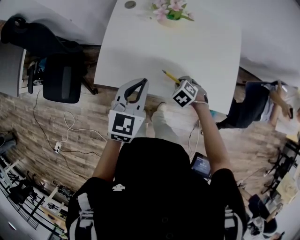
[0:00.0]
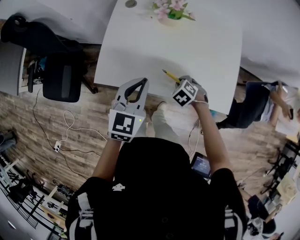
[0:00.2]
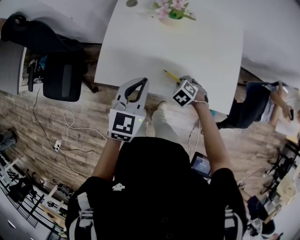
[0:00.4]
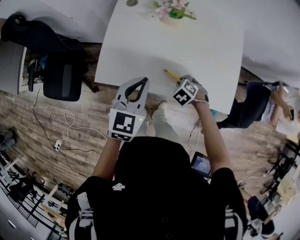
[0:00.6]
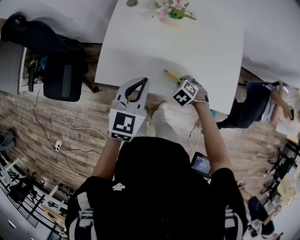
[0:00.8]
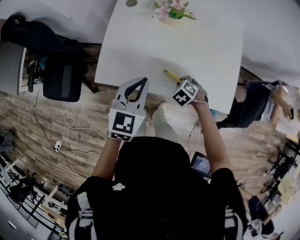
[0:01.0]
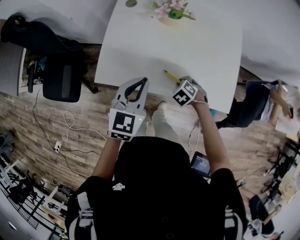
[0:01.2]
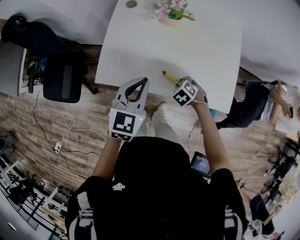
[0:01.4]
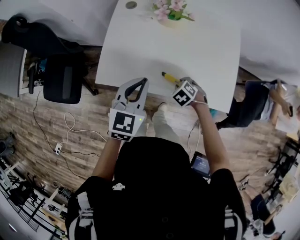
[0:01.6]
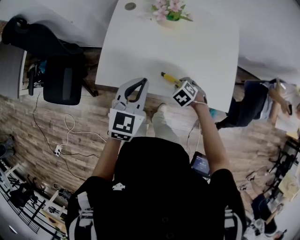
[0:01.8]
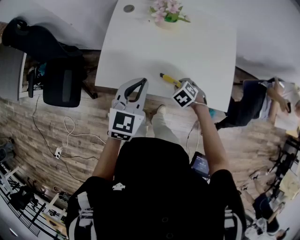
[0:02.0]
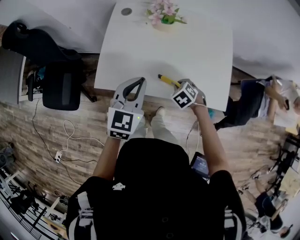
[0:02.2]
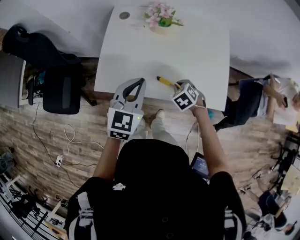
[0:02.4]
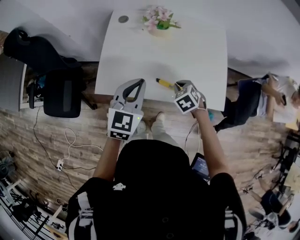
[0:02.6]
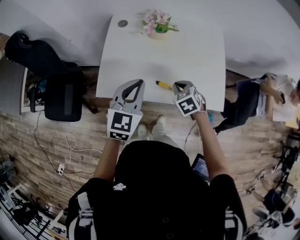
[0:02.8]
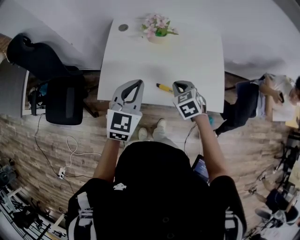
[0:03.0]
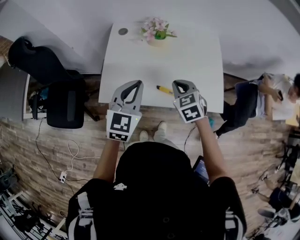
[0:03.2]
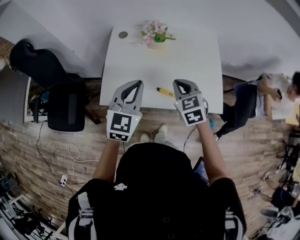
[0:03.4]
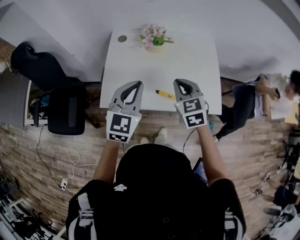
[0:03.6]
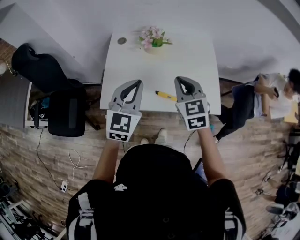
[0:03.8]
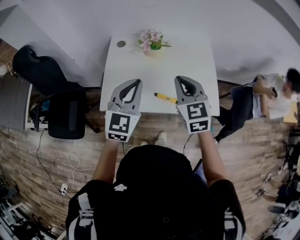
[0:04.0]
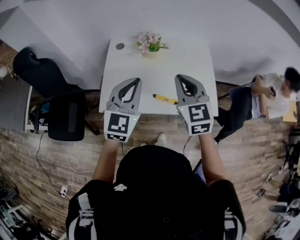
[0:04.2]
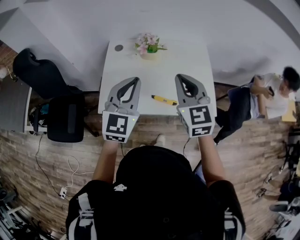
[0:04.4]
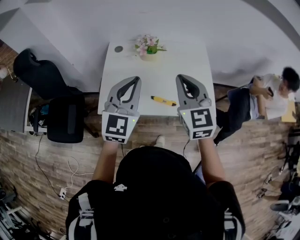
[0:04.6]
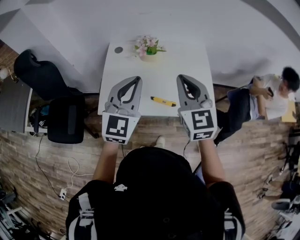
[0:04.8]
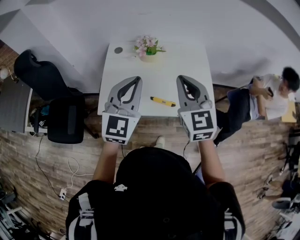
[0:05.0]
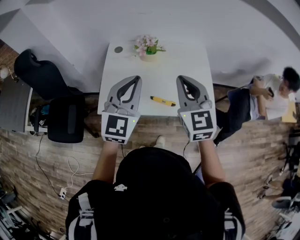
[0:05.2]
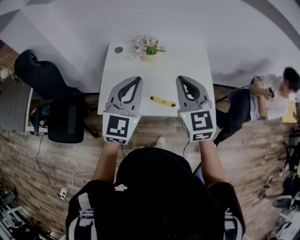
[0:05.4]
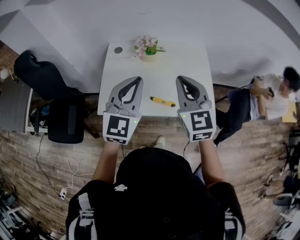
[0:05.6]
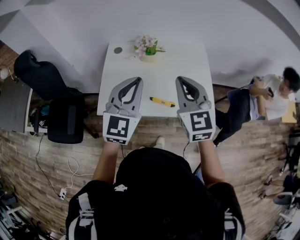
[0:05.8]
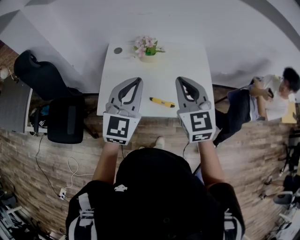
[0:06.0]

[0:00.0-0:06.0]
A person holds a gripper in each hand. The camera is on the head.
0:00.0 to 0:01.6: Both grippers stay put.
0:01.6 to 0:03.0: The right gripper moves upward, about 15 cm, turns by roughly 30 degrees, and closes up; the left gripper shifts roughly 5 cm upward.
0:03.0 to 0:04.4: The right gripper moves upward, about 25 cm, and angles its fingers upward, by about 40 degrees; the left gripper travels upward by approximately 10 cm.
0:04.4 to 0:06.0: The grippers stay close to where they were, moving slightly.

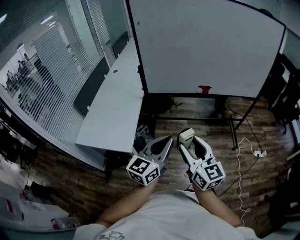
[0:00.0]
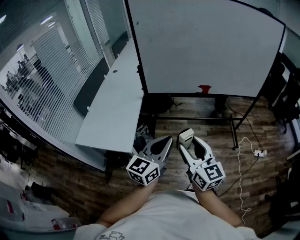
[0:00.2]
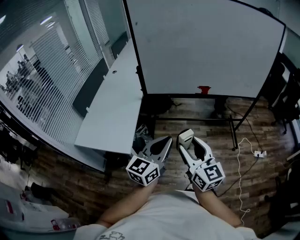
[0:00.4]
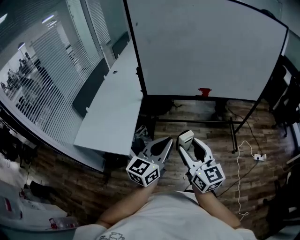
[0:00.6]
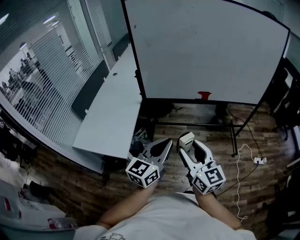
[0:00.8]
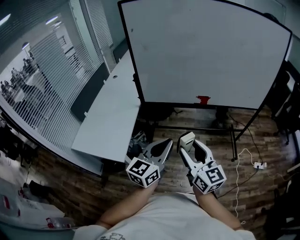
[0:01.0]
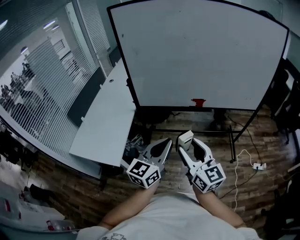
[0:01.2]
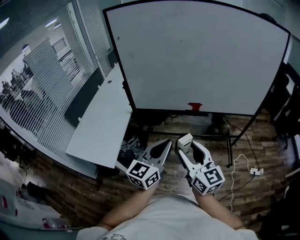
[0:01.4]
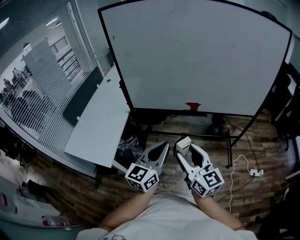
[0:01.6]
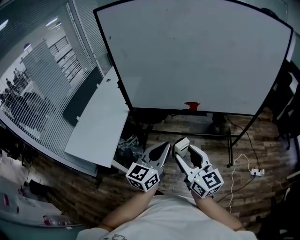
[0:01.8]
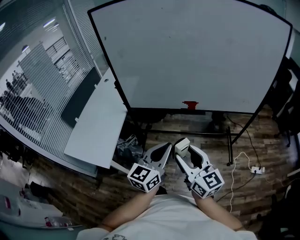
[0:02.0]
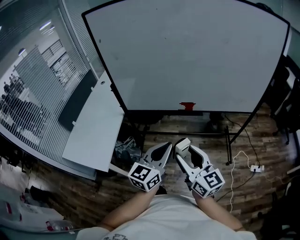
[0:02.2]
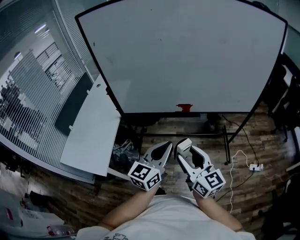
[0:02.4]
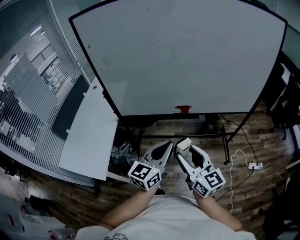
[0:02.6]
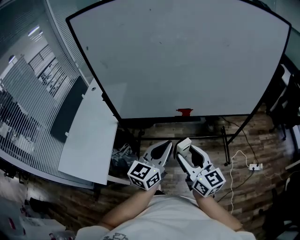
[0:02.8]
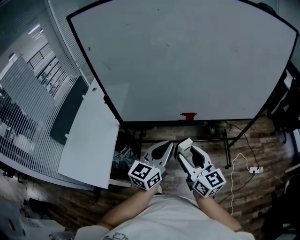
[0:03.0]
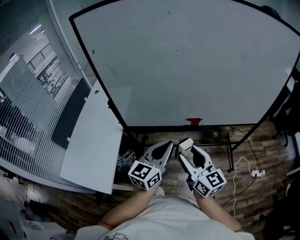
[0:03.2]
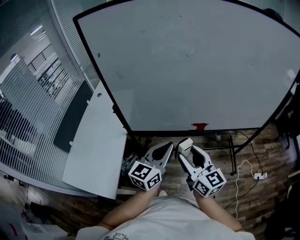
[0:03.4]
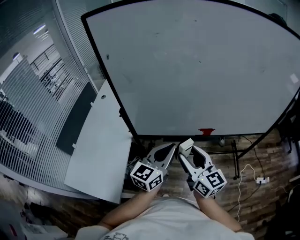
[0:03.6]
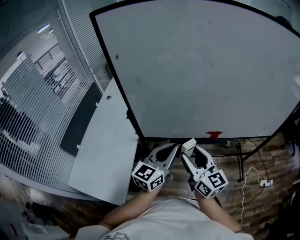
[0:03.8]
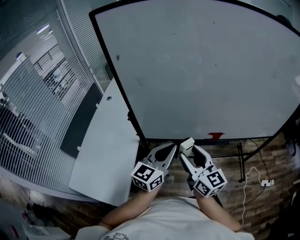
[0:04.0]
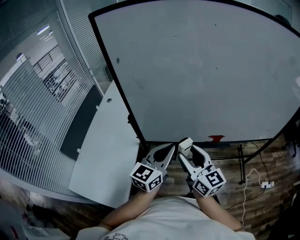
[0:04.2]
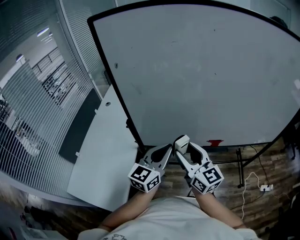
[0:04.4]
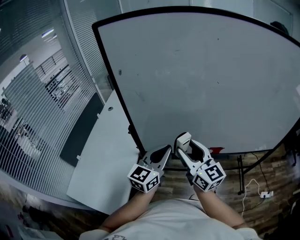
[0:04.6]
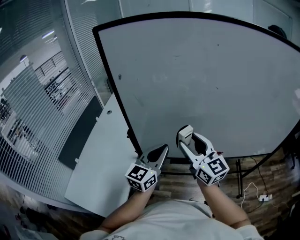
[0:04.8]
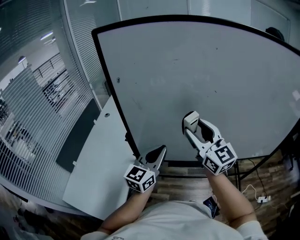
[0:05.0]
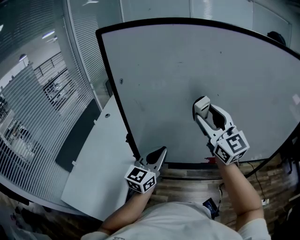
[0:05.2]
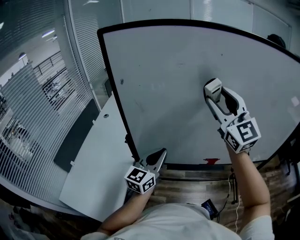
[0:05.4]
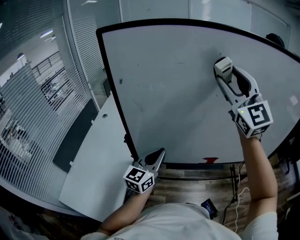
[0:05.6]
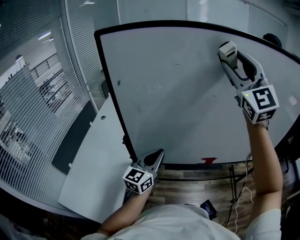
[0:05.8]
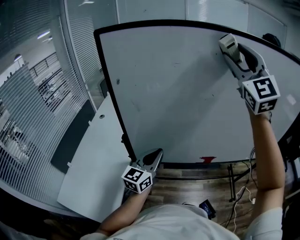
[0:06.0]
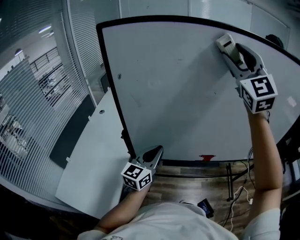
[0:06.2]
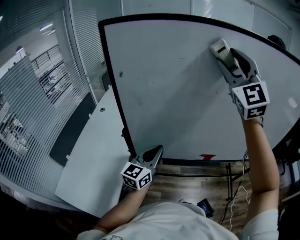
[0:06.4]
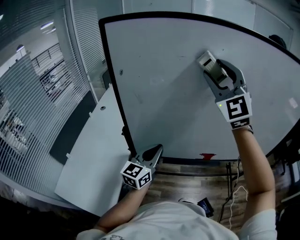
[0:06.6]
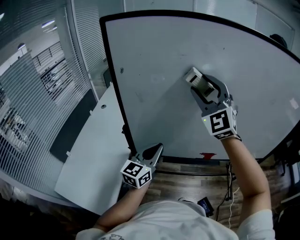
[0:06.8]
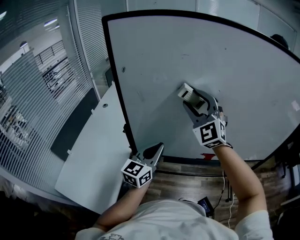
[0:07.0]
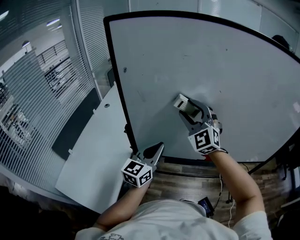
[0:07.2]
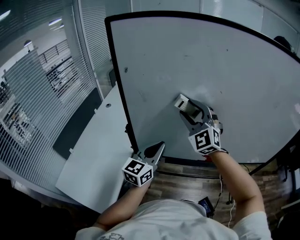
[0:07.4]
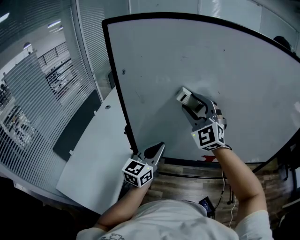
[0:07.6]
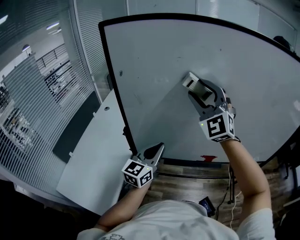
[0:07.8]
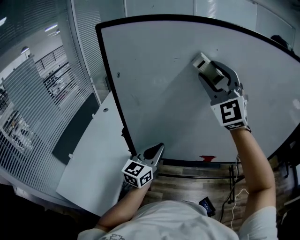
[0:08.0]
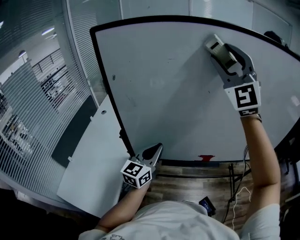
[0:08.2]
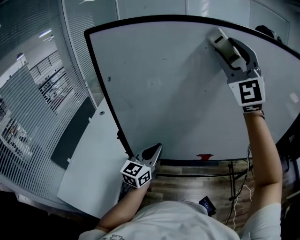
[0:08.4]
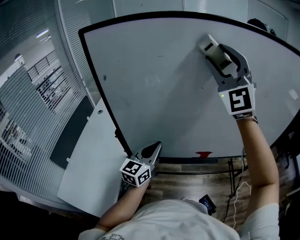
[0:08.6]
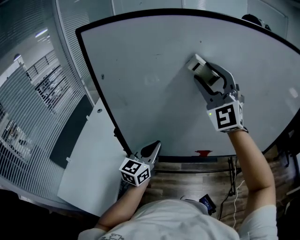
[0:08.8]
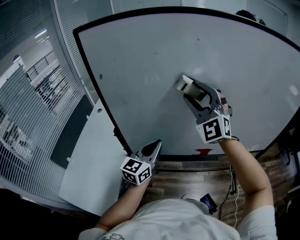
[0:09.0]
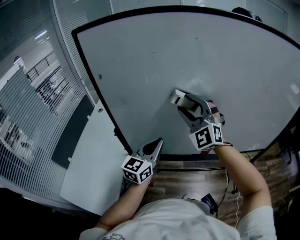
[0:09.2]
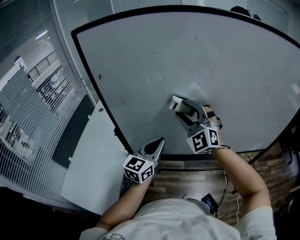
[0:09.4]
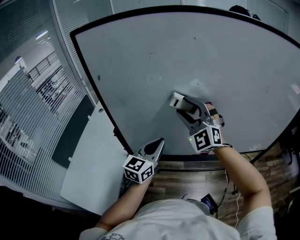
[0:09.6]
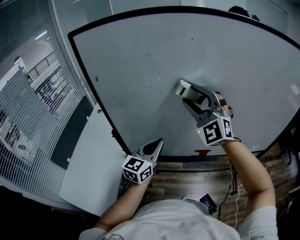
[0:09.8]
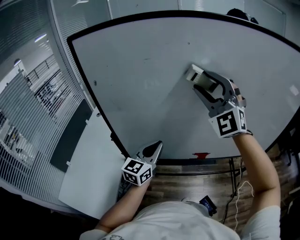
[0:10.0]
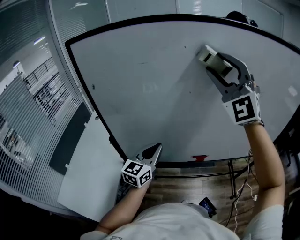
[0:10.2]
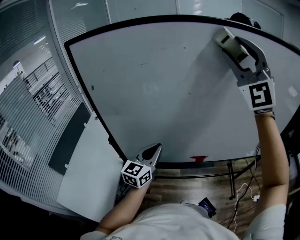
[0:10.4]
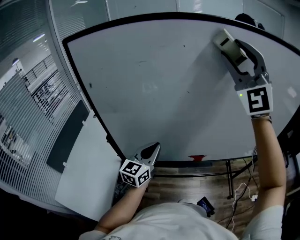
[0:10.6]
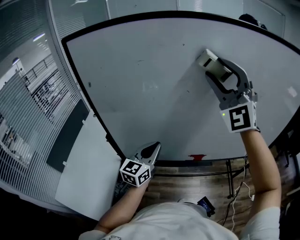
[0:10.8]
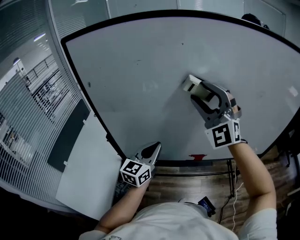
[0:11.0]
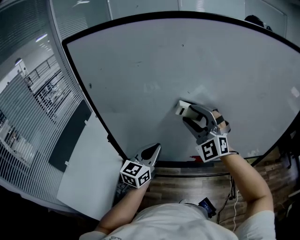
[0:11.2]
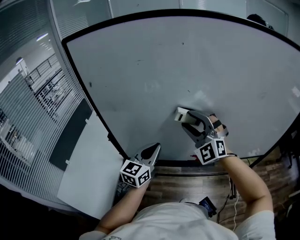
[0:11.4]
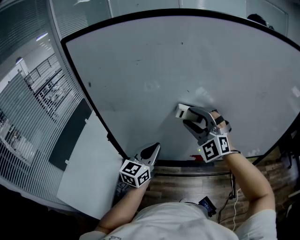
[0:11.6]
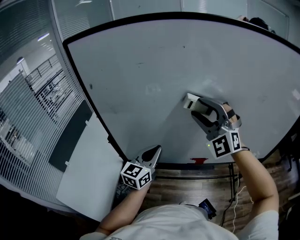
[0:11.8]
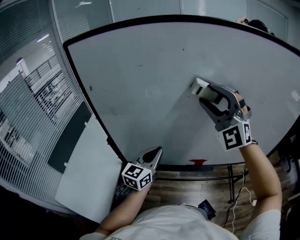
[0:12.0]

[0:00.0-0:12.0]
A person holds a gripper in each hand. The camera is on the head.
0:00.0 to 0:01.6: Both grippers travel together to the right and forward, about 20 cm.
0:01.6 to 0:03.0: The grippers both shift forward by roughly 15 cm.
0:03.0 to 0:04.4: Both grippers move to the left and forward, roughly 25 cm.
0:04.4 to 0:06.0: The left gripper shifts some 5 cm forward. Meanwhile the right gripper shifts about 40 cm upward, and rolls counterclockwise, seen from behind, by roughly 60 degrees.
0:06.0 to 0:07.6: The right gripper travels downward and to the left by approximately 25 cm.
0:07.6 to 0:09.0: The right gripper is displaced to the right by roughly 10 cm, and moves roughly 25 cm upward and comes back.
0:09.0 to 0:10.4: The right gripper is displaced upward and to the right by roughly 25 cm.
0:10.4 to 0:12.0: The right gripper goes roughly 15 cm downward.

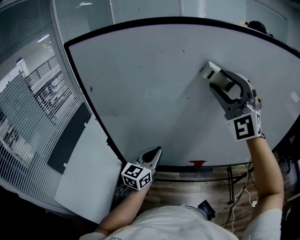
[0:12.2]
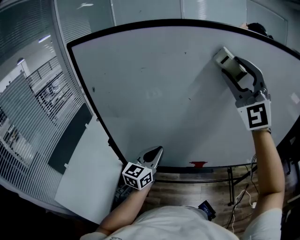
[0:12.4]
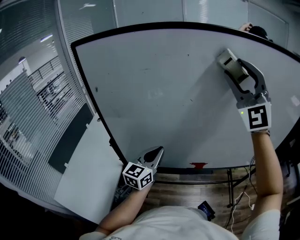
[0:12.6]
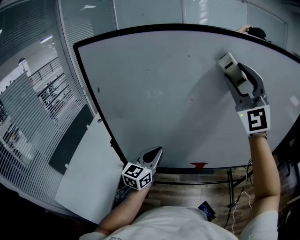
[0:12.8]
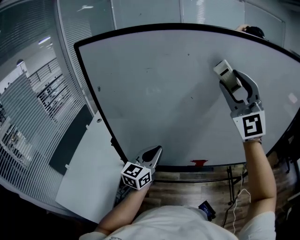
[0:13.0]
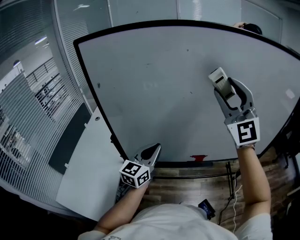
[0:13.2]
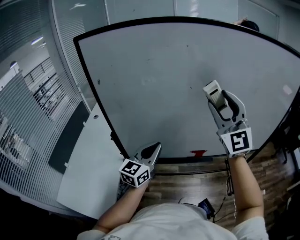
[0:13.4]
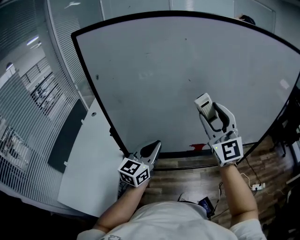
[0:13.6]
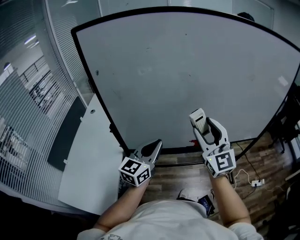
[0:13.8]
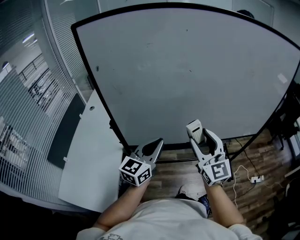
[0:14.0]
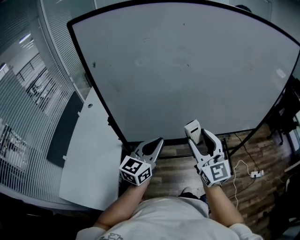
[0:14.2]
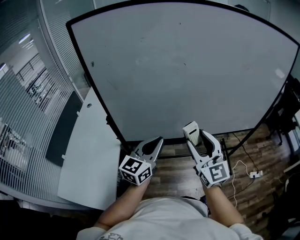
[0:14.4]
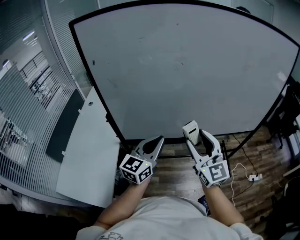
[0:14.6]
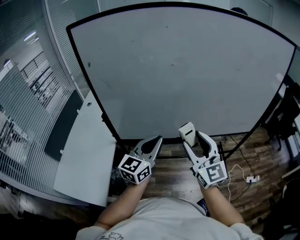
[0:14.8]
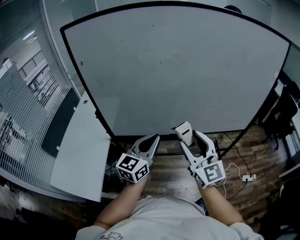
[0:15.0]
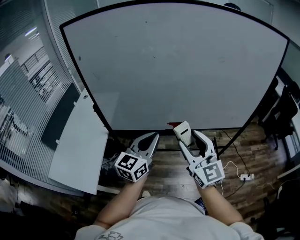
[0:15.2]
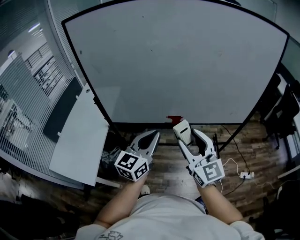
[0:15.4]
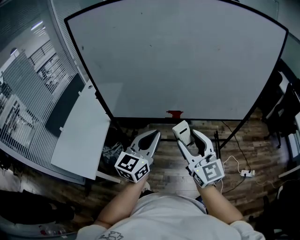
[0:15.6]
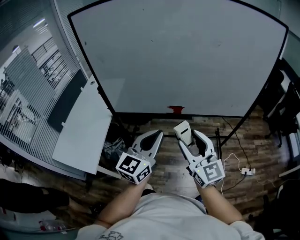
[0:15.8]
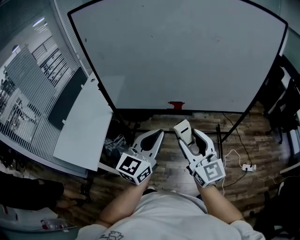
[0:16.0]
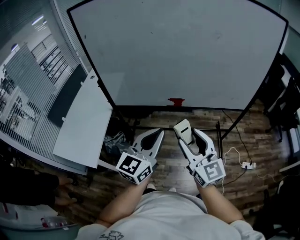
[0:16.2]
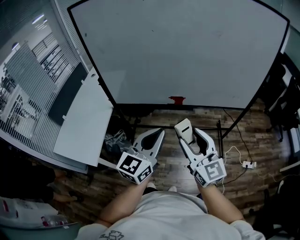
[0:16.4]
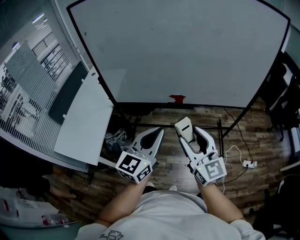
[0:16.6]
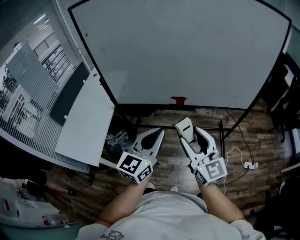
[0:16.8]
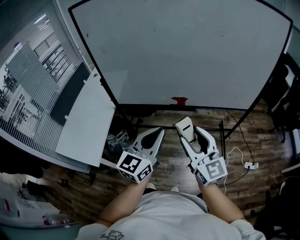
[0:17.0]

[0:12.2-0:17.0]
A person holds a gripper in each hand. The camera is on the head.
0:12.2 to 0:13.8: The left gripper goes roughly 10 cm backward. The right gripper heads downward and backward, covering some 25 cm, and twists roughly 50 degrees clockwise, seen from behind.
0:13.8 to 0:15.4: The right gripper shifts about 20 cm backward and to the right, while the left gripper travels to the right and backward by approximately 20 cm.
0:15.4 to 0:17.0: Both grippers move backward, roughly 10 cm.

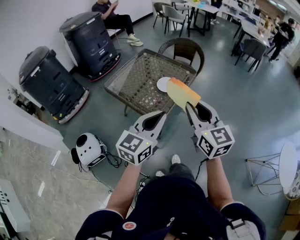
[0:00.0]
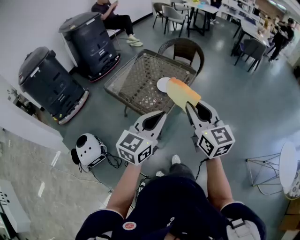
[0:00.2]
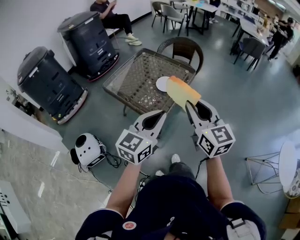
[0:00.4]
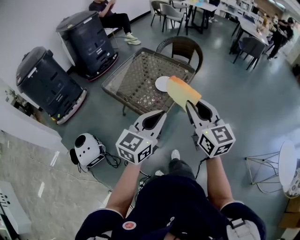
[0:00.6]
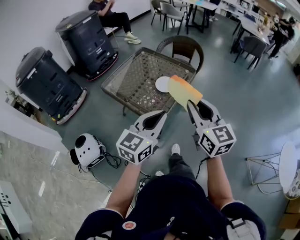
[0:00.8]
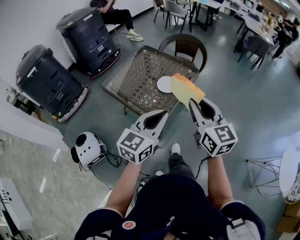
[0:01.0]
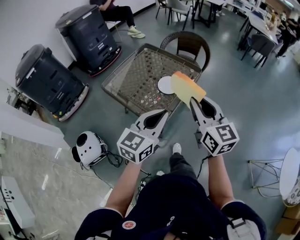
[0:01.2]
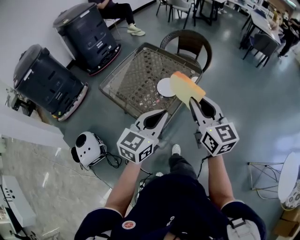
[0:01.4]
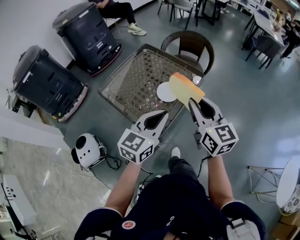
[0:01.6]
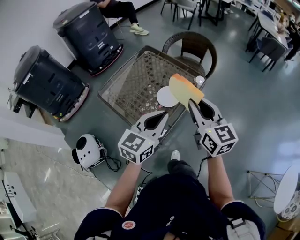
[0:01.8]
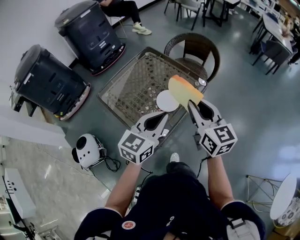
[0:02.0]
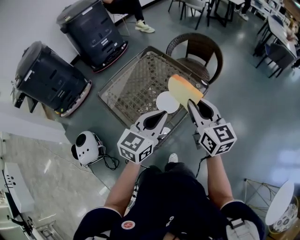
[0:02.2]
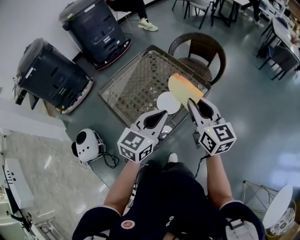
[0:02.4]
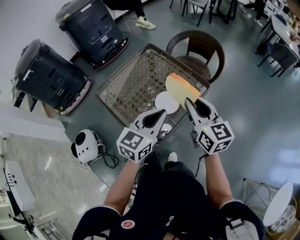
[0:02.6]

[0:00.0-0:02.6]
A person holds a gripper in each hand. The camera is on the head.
0:00.0 to 0:01.2: Both grippers travel together forward, about 10 cm.
0:01.2 to 0:02.6: The grippers both shift forward by roughly 20 cm.
